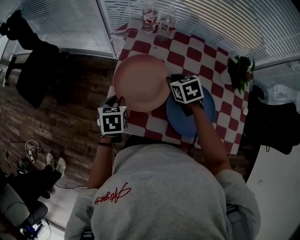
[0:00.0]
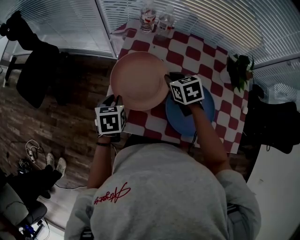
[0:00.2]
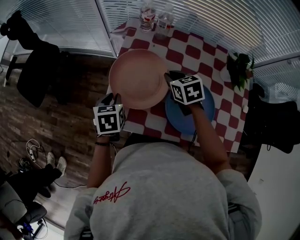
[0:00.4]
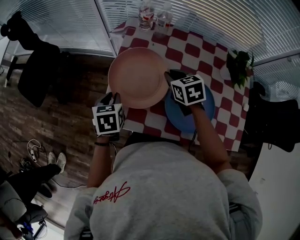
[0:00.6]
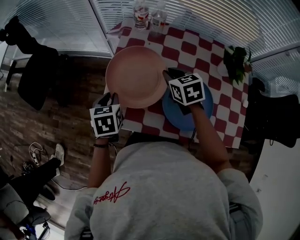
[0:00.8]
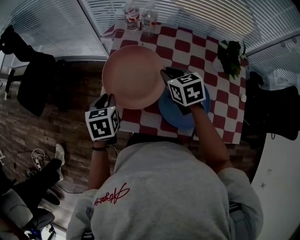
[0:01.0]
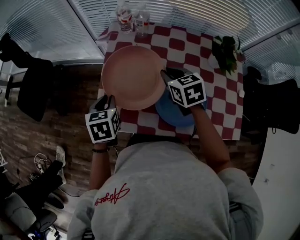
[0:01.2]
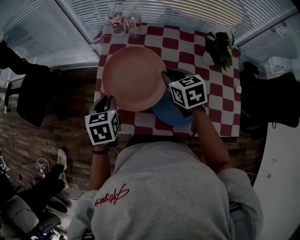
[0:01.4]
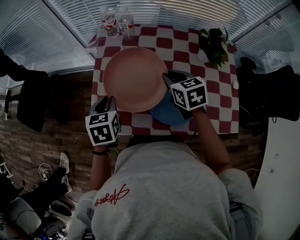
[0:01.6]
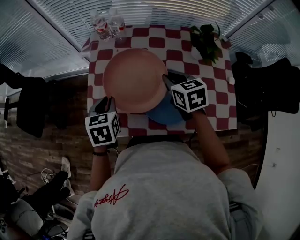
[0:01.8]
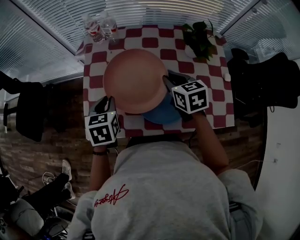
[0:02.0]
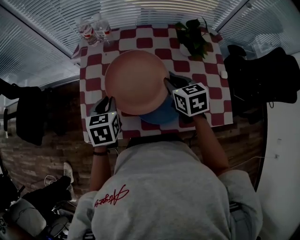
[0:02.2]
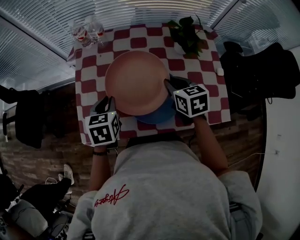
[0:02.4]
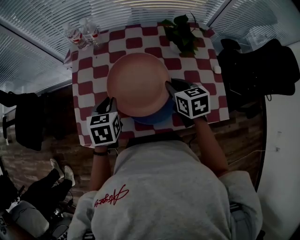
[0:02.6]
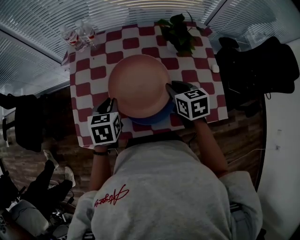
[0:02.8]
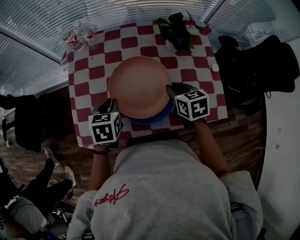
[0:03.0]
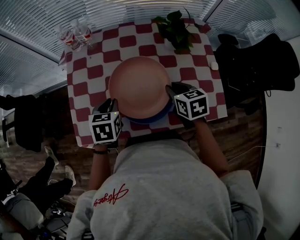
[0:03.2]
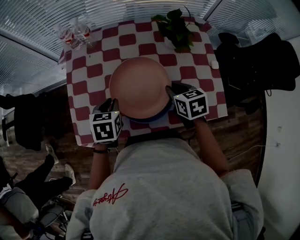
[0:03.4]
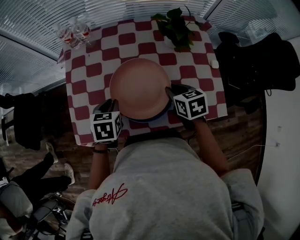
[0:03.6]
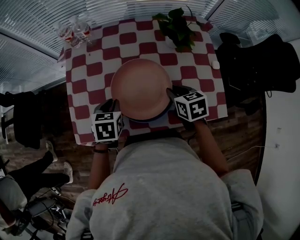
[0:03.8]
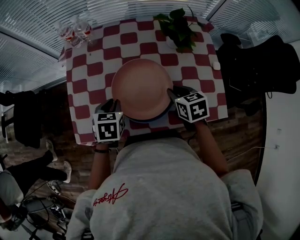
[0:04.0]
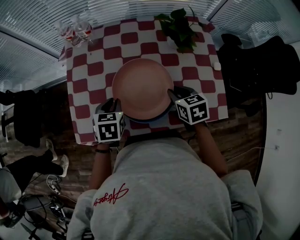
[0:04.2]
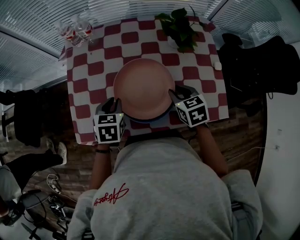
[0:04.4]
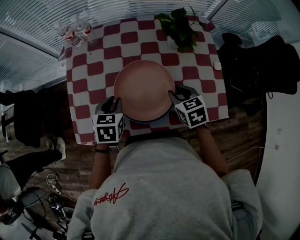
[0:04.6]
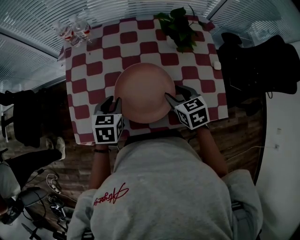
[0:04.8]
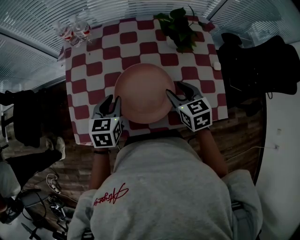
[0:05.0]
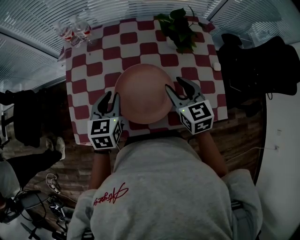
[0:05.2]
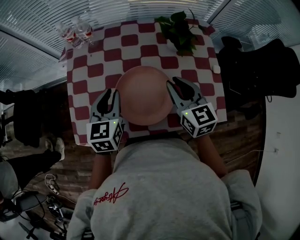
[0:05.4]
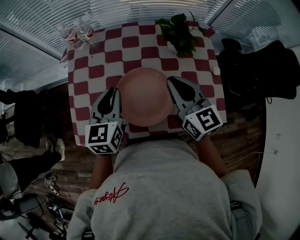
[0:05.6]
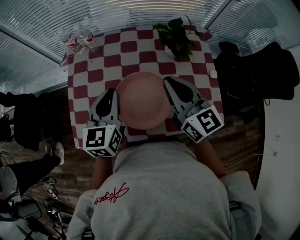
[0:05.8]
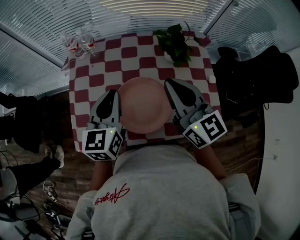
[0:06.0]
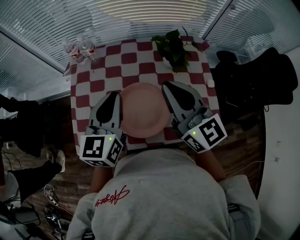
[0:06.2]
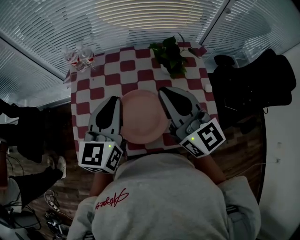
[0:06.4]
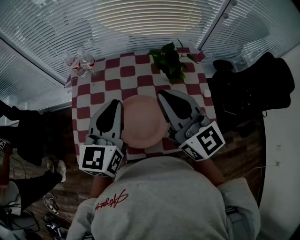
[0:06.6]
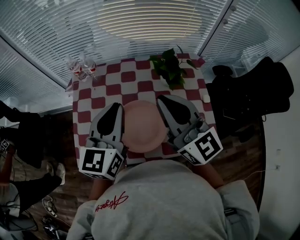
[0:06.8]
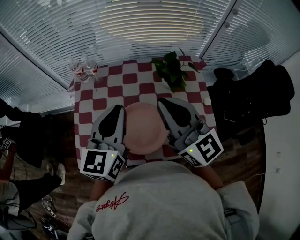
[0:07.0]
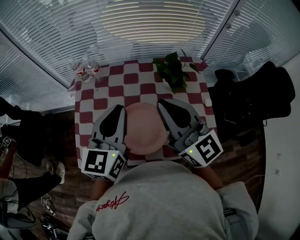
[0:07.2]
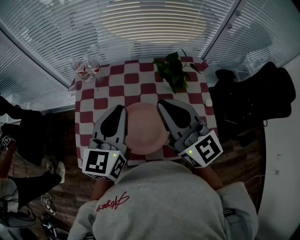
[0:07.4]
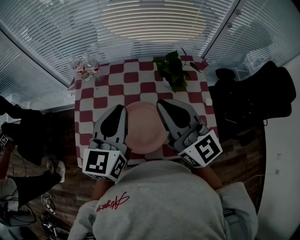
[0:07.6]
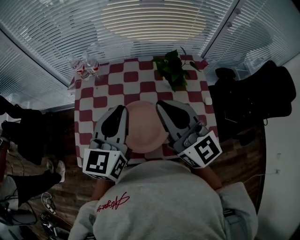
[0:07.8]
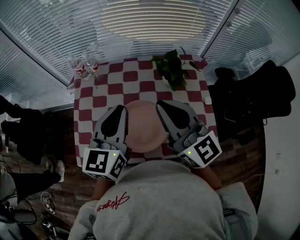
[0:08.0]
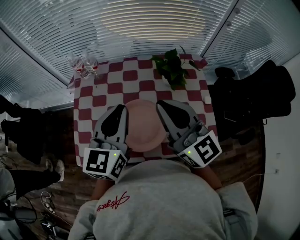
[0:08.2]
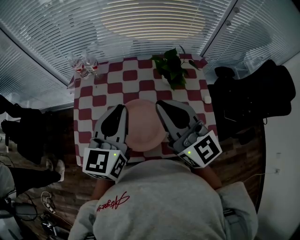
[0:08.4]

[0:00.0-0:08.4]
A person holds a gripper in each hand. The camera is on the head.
0:00.0 to 0:01.4: The right gripper travels upward and to the right by roughly 10 cm. The left gripper is displaced upward by some 5 cm.
0:01.4 to 0:02.8: The left gripper shifts roughly 15 cm to the right, while the right gripper is displaced to the right and backward by roughly 20 cm.
0:02.8 to 0:04.2: The right gripper moves about 5 cm.
0:04.2 to 0:05.6: Both grippers travel together upward, about 15 cm. The right gripper points its fingers roughly 40 degrees further upward, and opens, then closes again. Meanwhile the left gripper tips its fingers upward by roughly 30 degrees.
0:05.6 to 0:07.0: The two grippers go approximately 15 cm upward. The right gripper turns by approximately 20 degrees.
0:07.0 to 0:08.4: The grippers stay close to where they were, moving slightly.

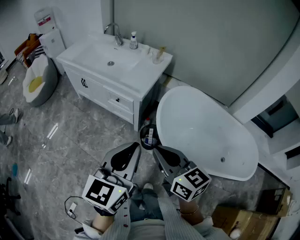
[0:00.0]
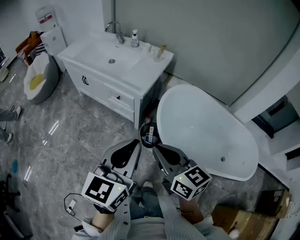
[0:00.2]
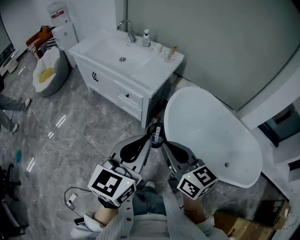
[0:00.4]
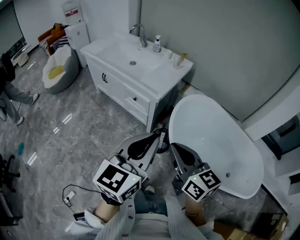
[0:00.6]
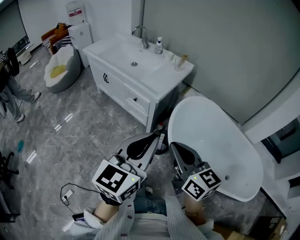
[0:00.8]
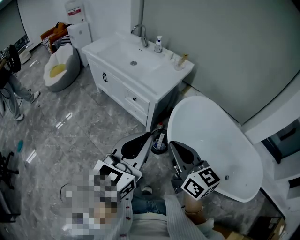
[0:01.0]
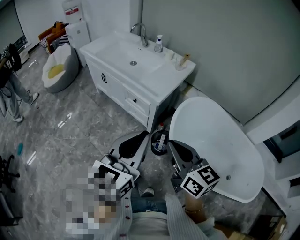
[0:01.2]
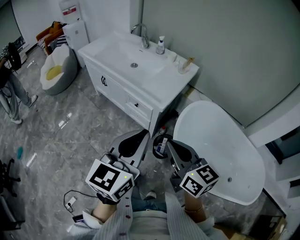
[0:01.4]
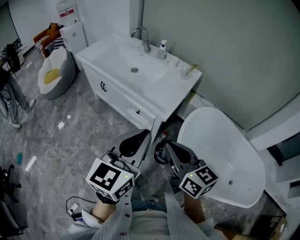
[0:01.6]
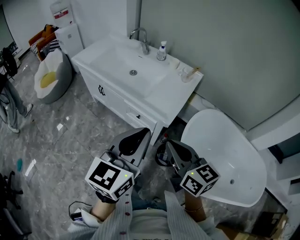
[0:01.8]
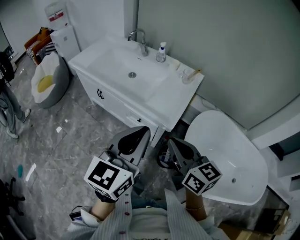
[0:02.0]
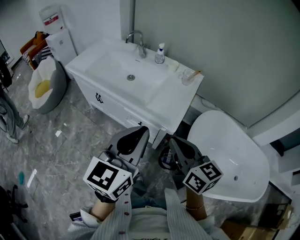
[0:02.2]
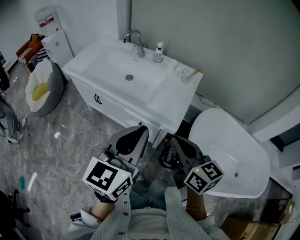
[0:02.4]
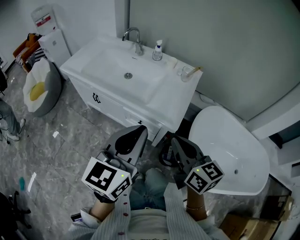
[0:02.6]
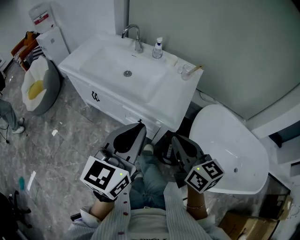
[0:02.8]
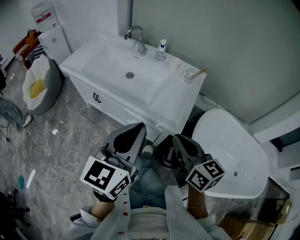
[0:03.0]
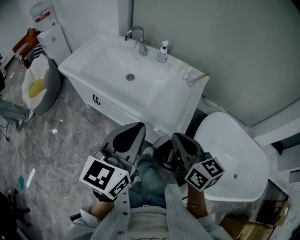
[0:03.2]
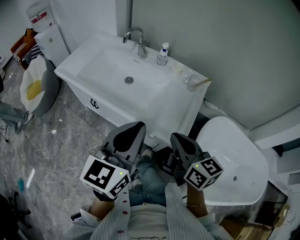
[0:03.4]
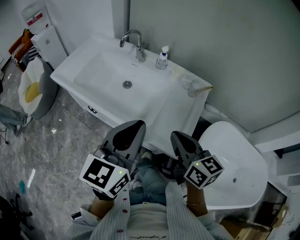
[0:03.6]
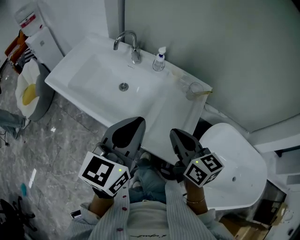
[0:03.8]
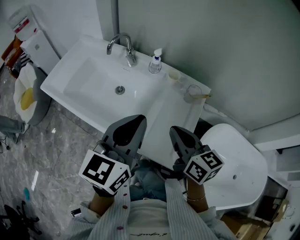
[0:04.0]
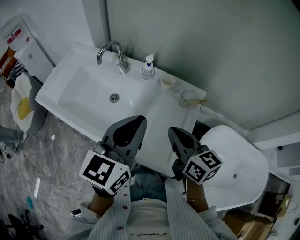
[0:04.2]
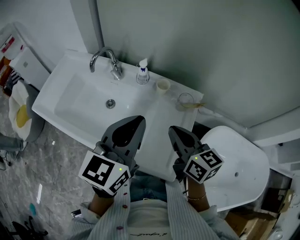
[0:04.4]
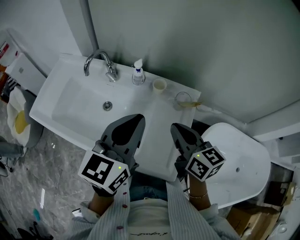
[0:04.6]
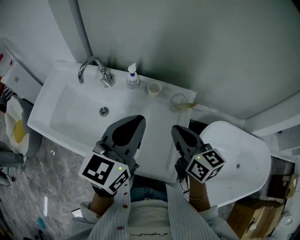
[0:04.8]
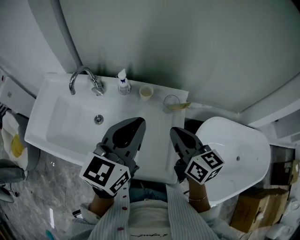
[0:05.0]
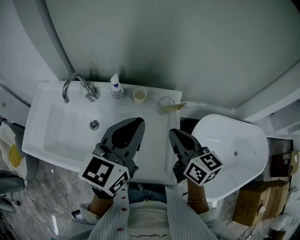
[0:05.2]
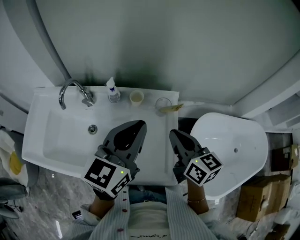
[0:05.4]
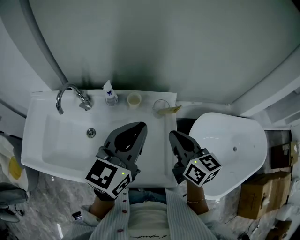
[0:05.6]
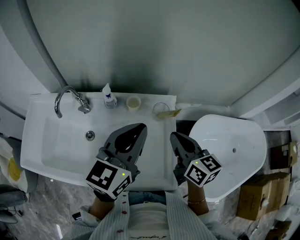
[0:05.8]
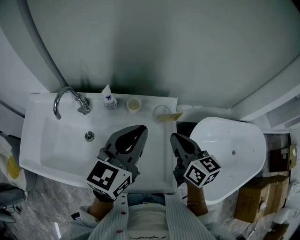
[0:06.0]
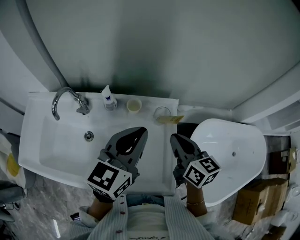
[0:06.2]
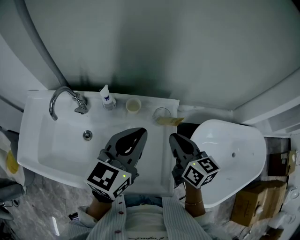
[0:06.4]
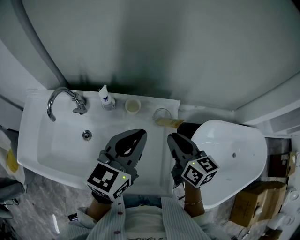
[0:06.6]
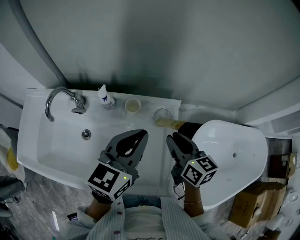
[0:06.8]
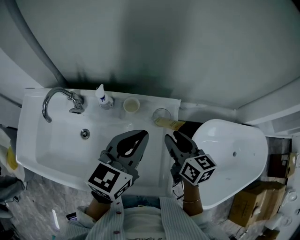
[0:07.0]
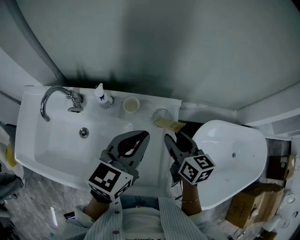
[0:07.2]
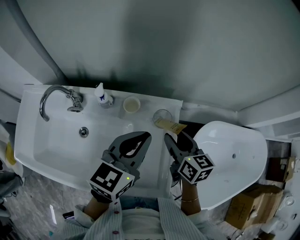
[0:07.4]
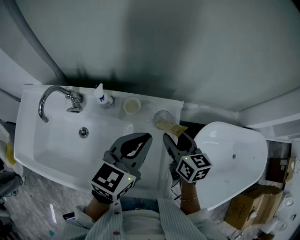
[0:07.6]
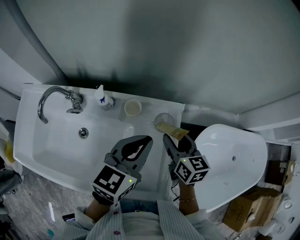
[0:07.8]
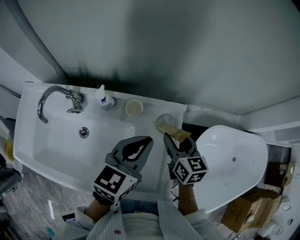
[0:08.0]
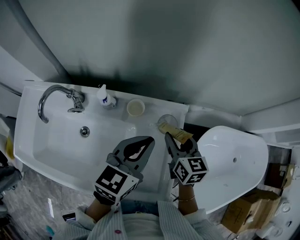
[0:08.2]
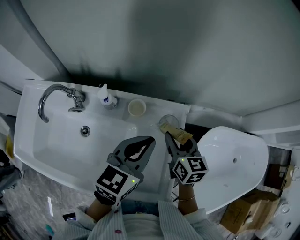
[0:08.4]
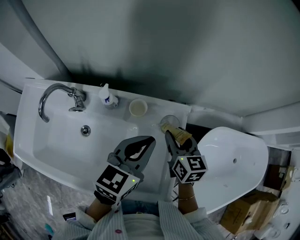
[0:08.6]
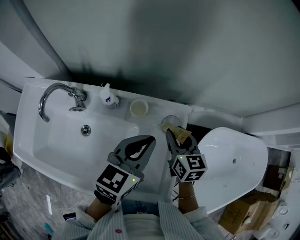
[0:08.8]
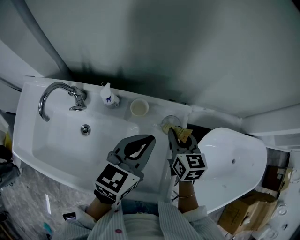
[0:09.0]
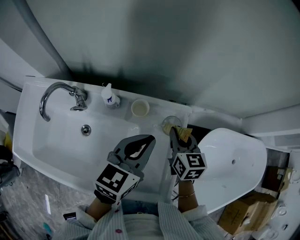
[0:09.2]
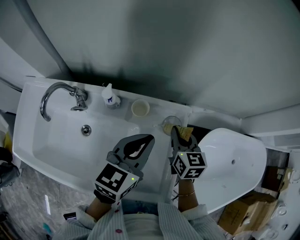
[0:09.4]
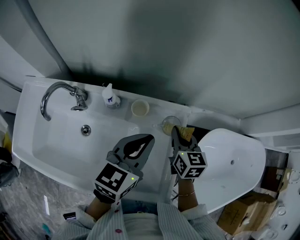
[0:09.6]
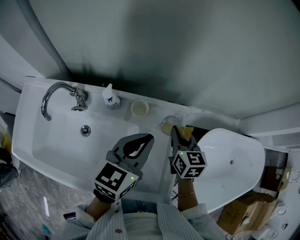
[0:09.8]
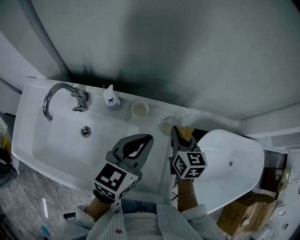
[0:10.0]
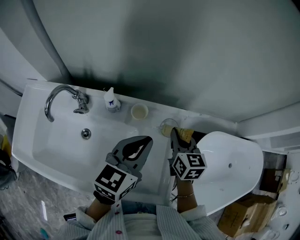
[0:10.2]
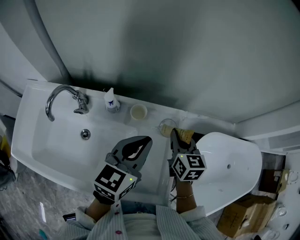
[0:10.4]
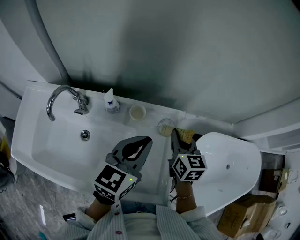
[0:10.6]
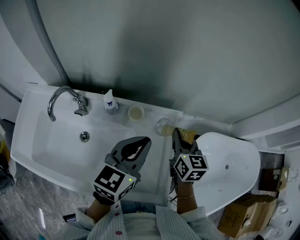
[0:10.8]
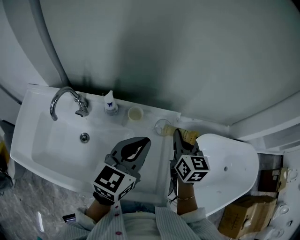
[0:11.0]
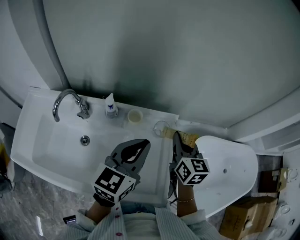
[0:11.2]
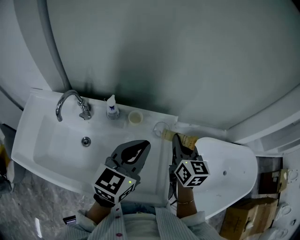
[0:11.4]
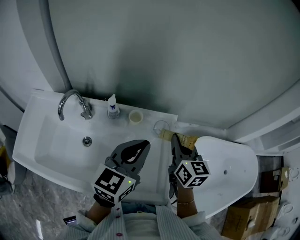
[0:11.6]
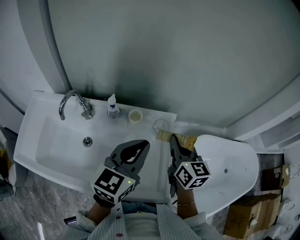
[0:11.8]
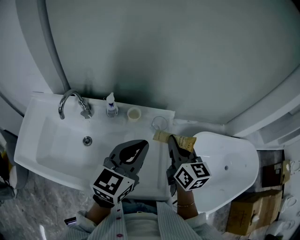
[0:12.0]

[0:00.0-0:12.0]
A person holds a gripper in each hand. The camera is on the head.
0:00.0 to 0:01.6: The two grippers go some 15 cm forward.
0:01.6 to 0:03.0: Both grippers travel together forward and to the left, some 15 cm.
0:03.0 to 0:04.4: The grippers both shift forward by some 30 cm.
0:04.4 to 0:06.0: The left gripper moves forward and to the right, some 10 cm, and swivels approximately 20 degrees. The right gripper shifts roughly 10 cm to the right and forward, and changes its angle by some 20 degrees.
0:06.0 to 0:07.6: Both grippers travel together downward and forward, some 10 cm. The right gripper opens up.
0:07.6 to 0:09.0: The right gripper closes up.
0:09.0 to 0:10.4: The grippers stay close to where they were, moving slightly.
0:10.4 to 0:12.0: The right gripper shifts about 15 cm upward and backward; the left gripper heads backward and upward, covering approximately 10 cm.

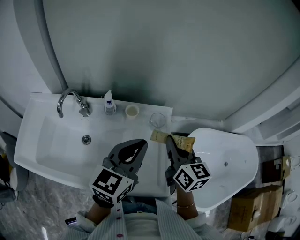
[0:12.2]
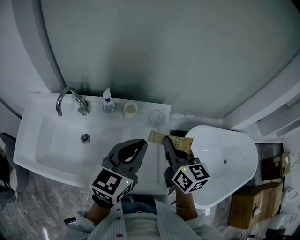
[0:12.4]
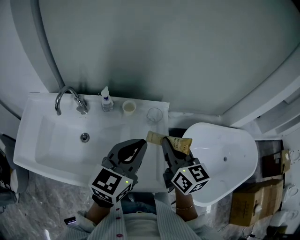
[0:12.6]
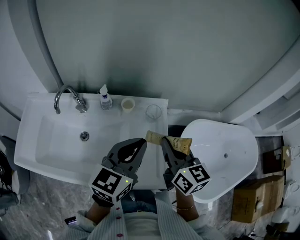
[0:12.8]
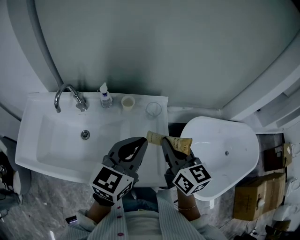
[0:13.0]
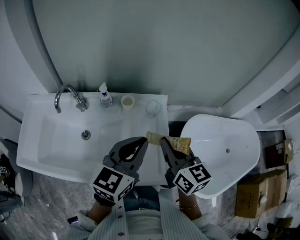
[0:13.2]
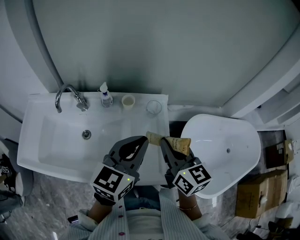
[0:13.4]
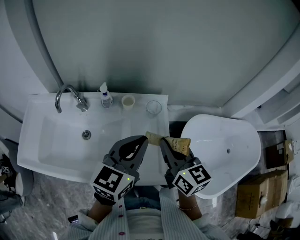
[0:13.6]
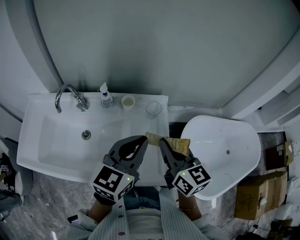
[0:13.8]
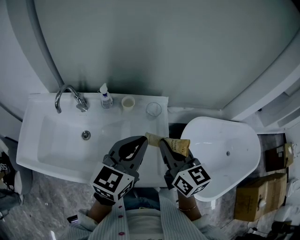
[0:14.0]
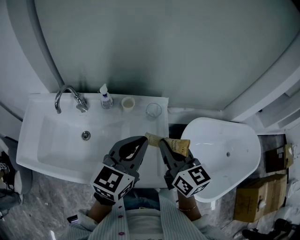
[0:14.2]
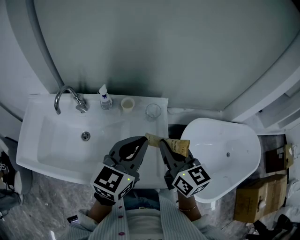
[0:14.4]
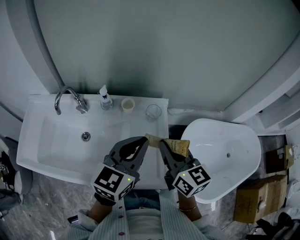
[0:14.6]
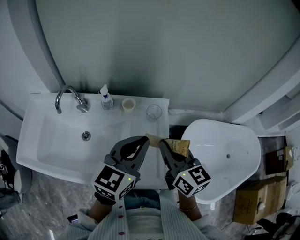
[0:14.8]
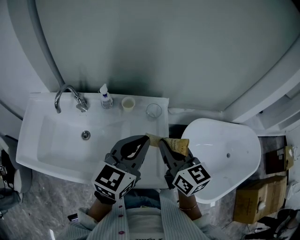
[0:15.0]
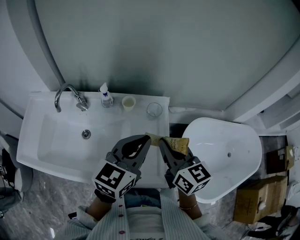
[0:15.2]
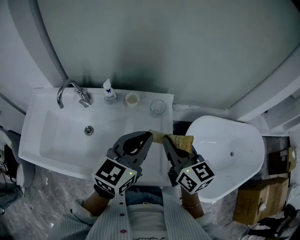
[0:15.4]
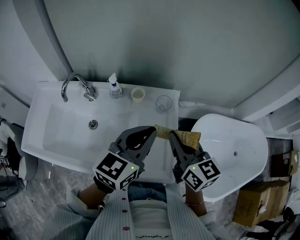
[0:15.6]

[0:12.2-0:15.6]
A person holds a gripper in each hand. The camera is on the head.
0:12.2 to 0:13.8: The right gripper travels backward by roughly 5 cm.
0:13.8 to 0:15.6: The grippers move only a little.
